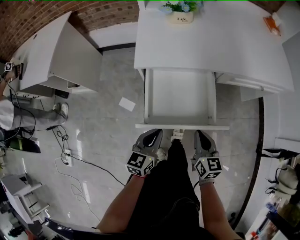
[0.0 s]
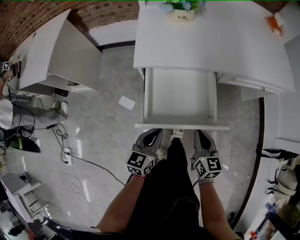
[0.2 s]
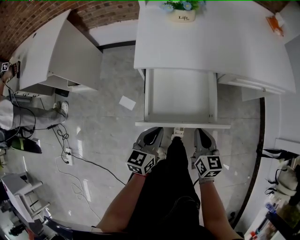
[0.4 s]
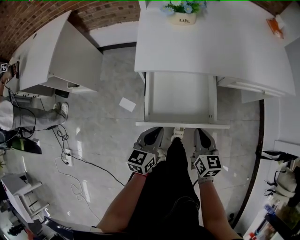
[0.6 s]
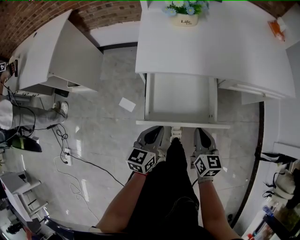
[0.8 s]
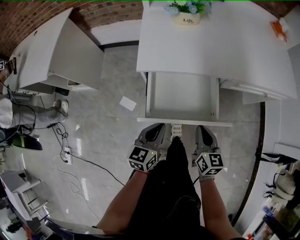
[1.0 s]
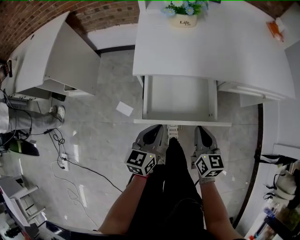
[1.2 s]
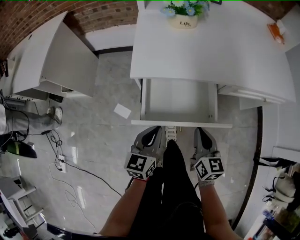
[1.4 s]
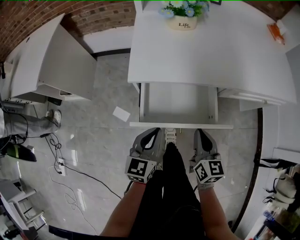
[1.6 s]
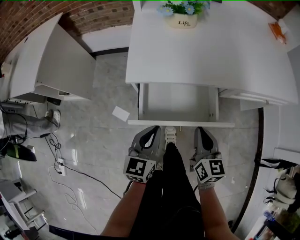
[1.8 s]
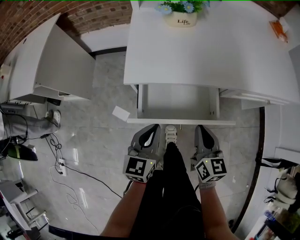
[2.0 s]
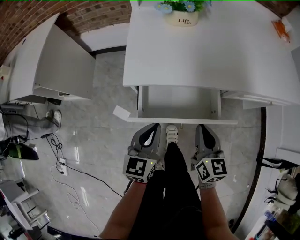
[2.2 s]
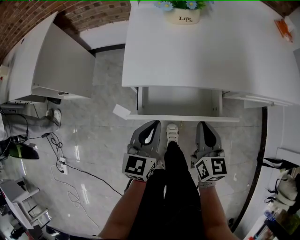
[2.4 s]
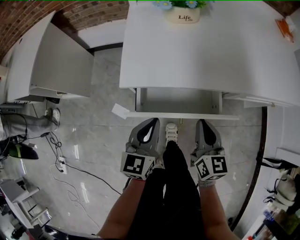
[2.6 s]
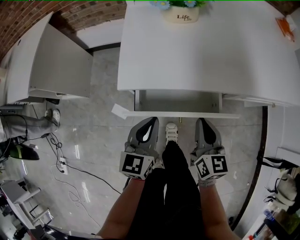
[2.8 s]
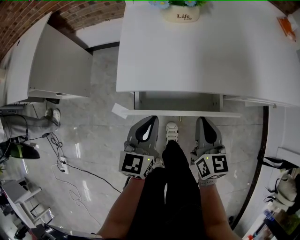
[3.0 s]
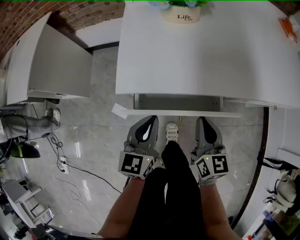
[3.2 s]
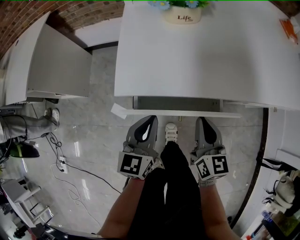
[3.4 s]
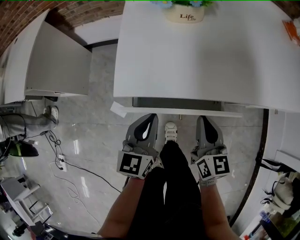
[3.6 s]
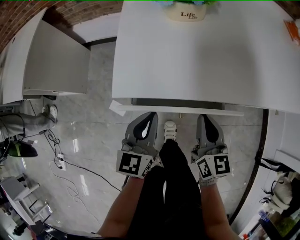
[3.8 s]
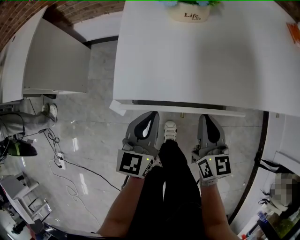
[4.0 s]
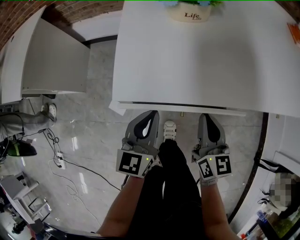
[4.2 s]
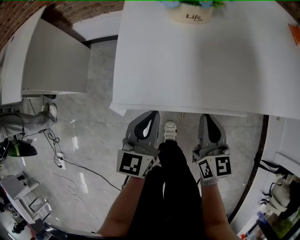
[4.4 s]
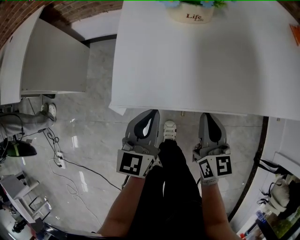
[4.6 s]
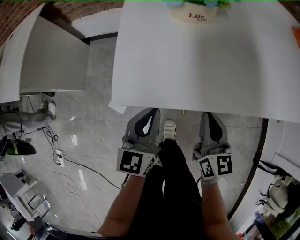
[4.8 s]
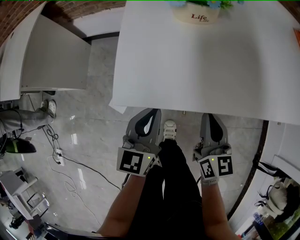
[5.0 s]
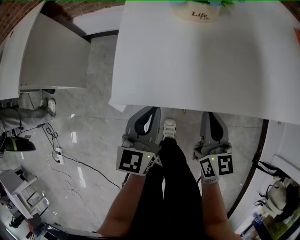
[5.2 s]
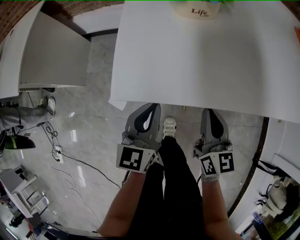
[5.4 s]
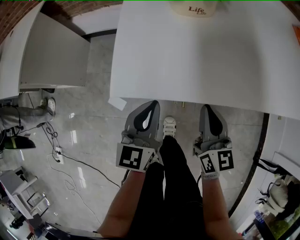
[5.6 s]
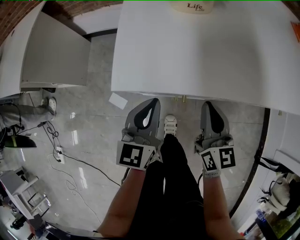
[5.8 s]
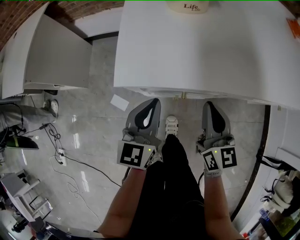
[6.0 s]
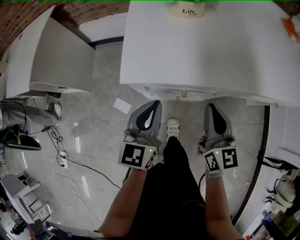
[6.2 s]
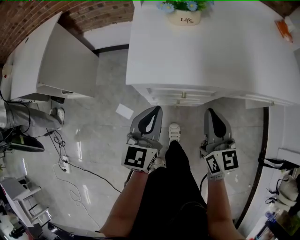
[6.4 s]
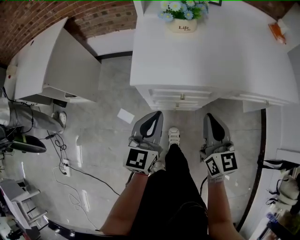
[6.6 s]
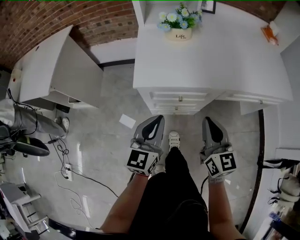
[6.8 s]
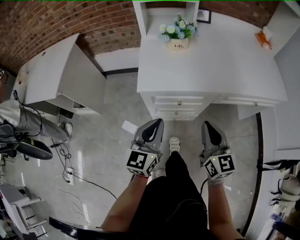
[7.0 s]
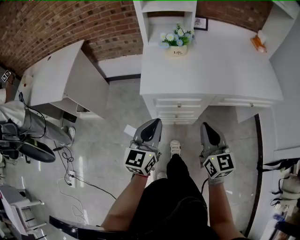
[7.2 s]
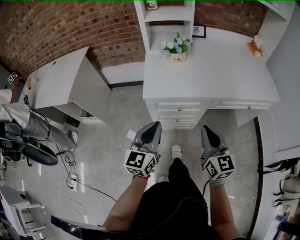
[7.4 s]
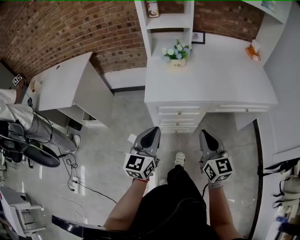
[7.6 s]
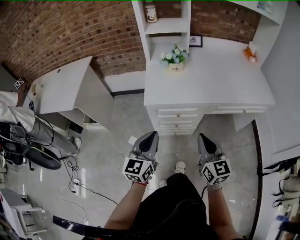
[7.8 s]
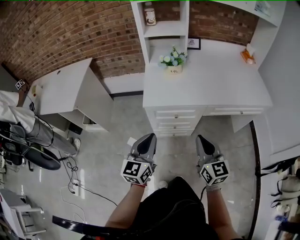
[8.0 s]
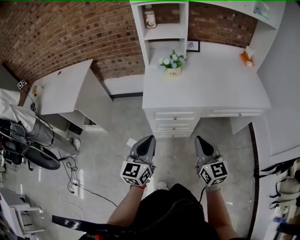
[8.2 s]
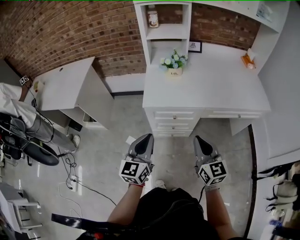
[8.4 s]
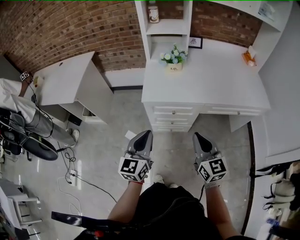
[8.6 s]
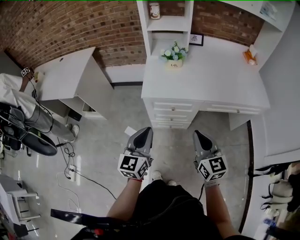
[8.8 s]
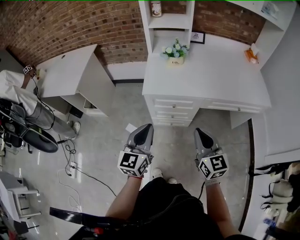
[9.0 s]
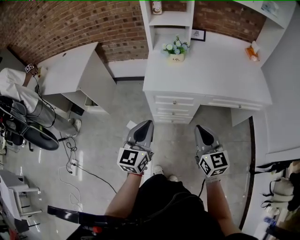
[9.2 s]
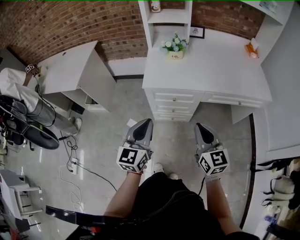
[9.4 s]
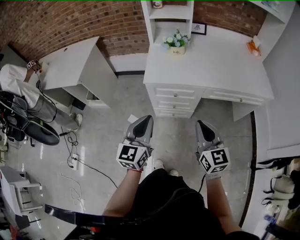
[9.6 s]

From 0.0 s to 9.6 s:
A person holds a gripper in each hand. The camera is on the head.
From 0.0 s to 1.6 s: The two grippers go about 10 cm forward.
From 1.6 s to 3.2 s: The two grippers go some 10 cm forward.
From 3.2 s to 4.8 s: The grippers both shift forward by some 5 cm.
From 4.8 s to 6.4 s: Both grippers travel together backward and upward, approximately 10 cm.
From 6.4 s to 8.0 s: The right gripper travels backward and upward by about 20 cm. Meanwhile the left gripper moves upward and backward, roughly 20 cm.
From 8.0 s to 9.6 s: The right gripper changes place by some 5 cm; the left gripper is displaced backward by about 5 cm.

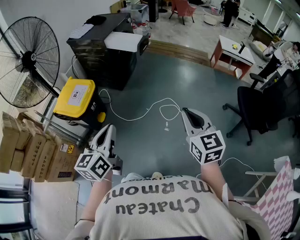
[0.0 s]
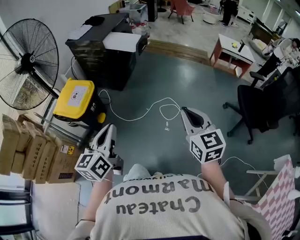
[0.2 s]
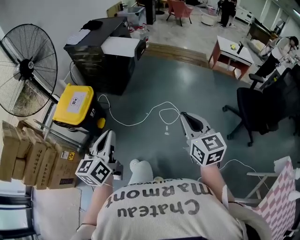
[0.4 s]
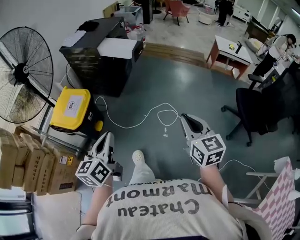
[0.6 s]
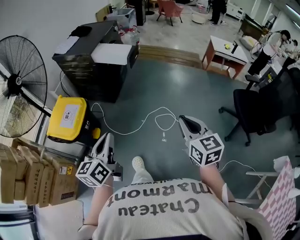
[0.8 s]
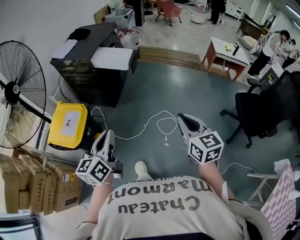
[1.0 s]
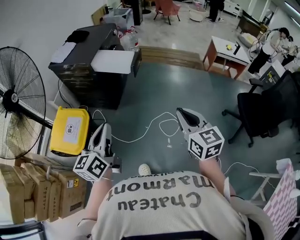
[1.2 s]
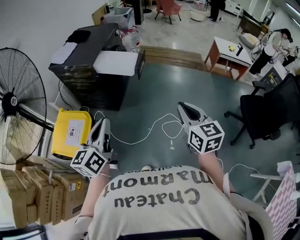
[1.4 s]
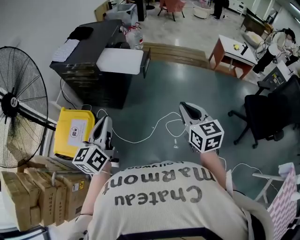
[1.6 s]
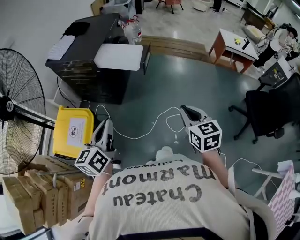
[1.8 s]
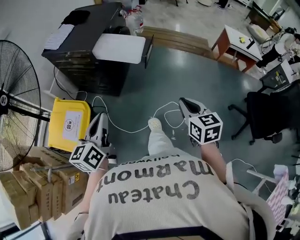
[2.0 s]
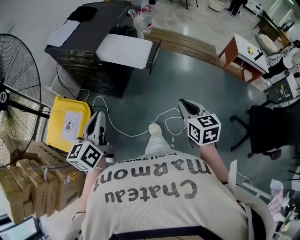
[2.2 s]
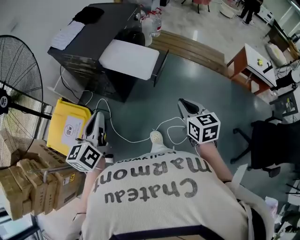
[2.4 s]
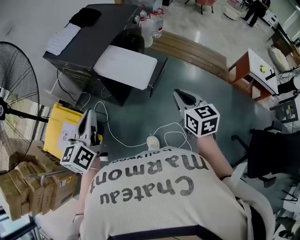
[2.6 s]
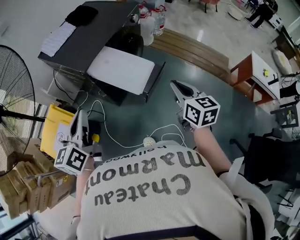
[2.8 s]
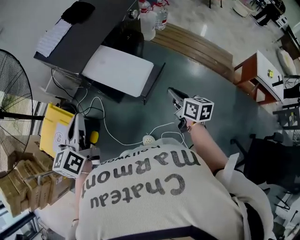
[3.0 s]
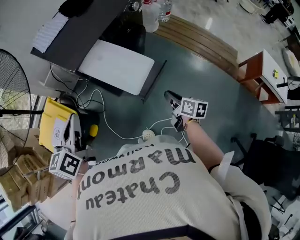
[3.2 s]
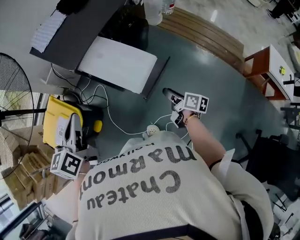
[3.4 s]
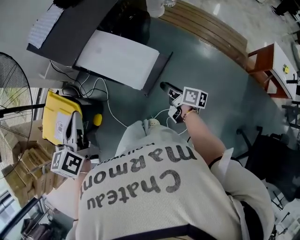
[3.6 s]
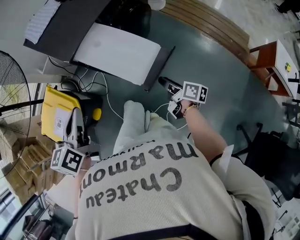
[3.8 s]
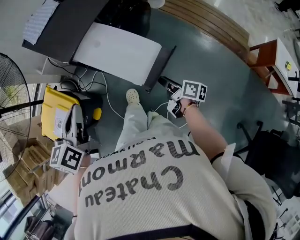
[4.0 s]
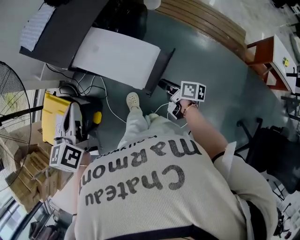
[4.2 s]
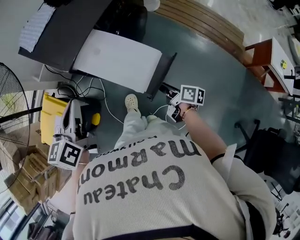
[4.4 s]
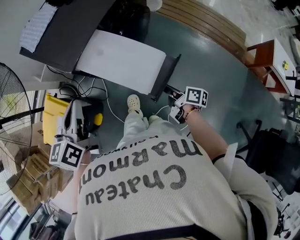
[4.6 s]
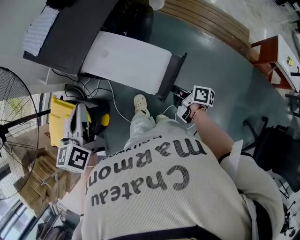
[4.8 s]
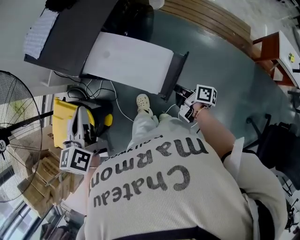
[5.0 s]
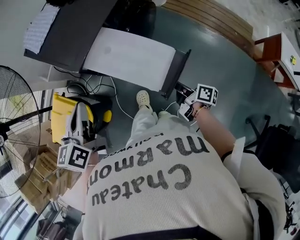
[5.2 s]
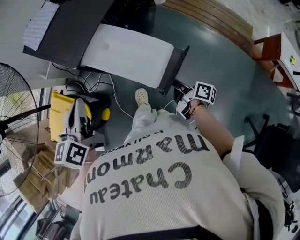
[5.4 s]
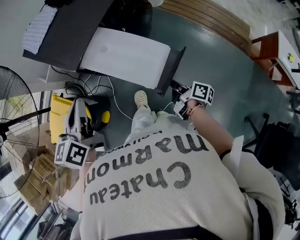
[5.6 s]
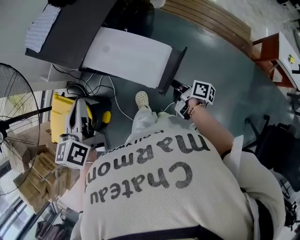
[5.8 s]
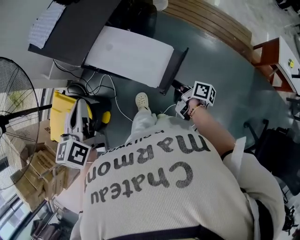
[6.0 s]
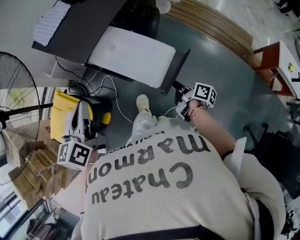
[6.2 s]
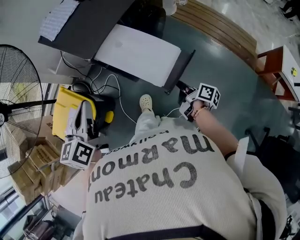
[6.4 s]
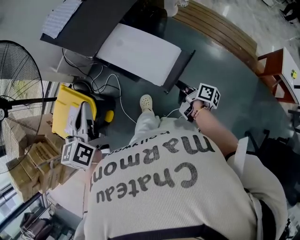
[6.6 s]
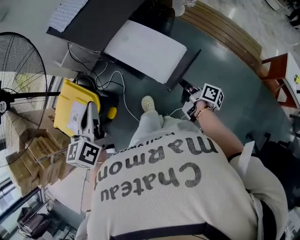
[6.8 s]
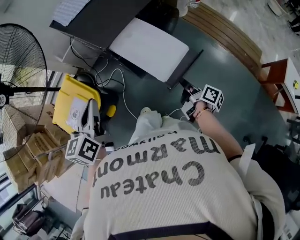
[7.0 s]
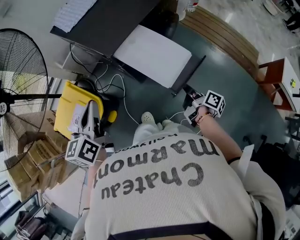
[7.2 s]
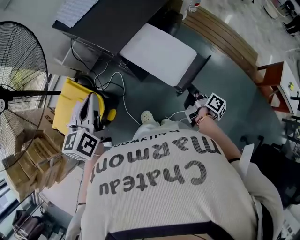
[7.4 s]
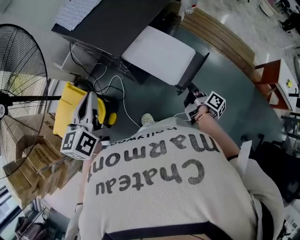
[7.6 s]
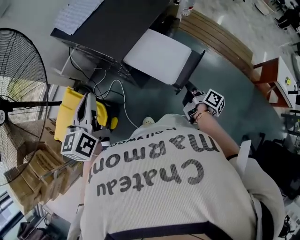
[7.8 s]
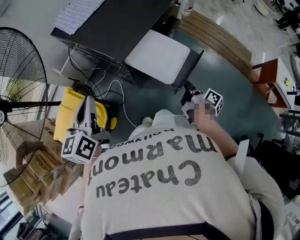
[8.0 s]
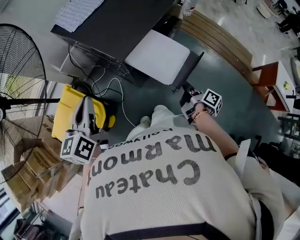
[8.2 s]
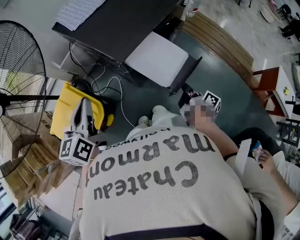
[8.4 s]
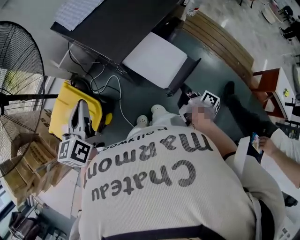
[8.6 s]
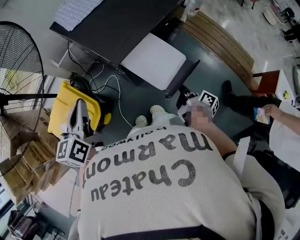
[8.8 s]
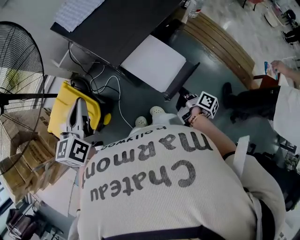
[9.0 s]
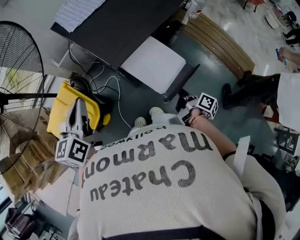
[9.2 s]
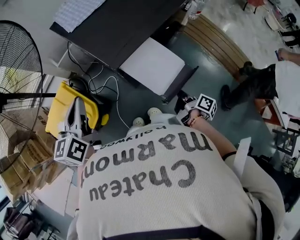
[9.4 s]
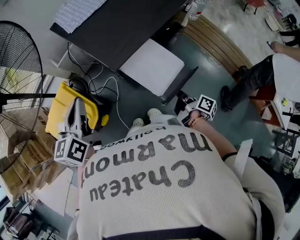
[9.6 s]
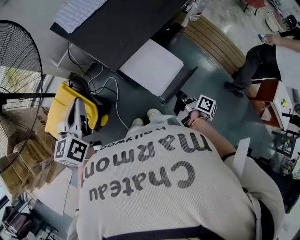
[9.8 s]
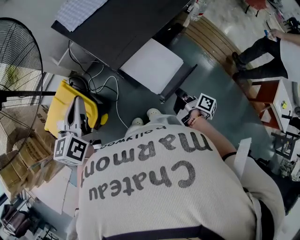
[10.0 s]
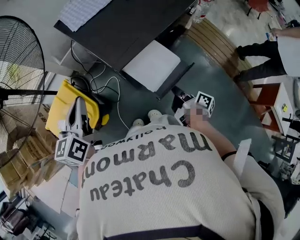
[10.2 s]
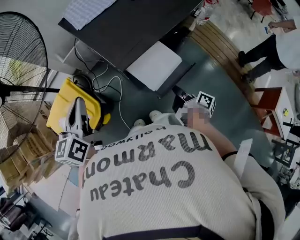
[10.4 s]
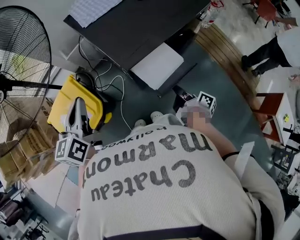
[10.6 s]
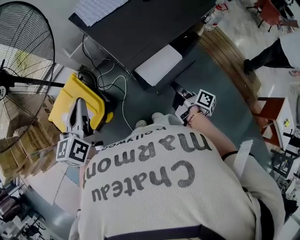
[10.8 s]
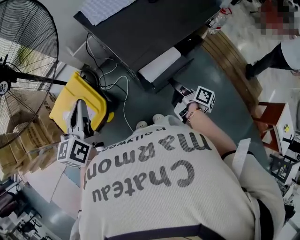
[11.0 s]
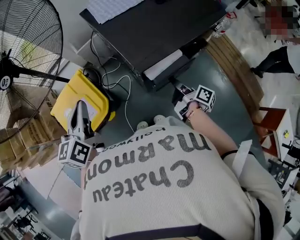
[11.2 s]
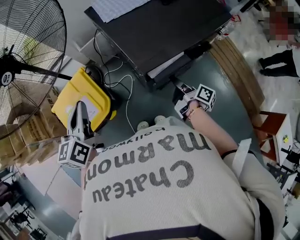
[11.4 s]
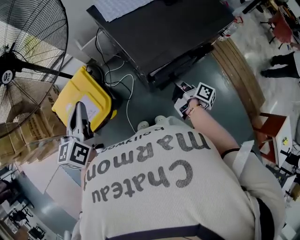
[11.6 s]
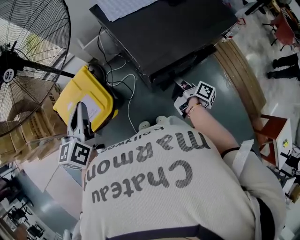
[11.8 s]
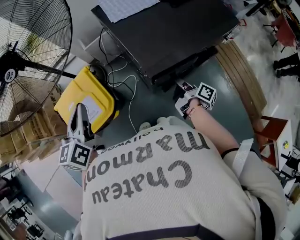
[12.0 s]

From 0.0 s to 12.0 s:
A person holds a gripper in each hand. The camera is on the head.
From 0.0 s to 1.6 s: Both grippers move forward, some 35 cm.
From 1.6 s to 3.0 s: The right gripper moves roughly 50 cm, and changes its angle by some 40 degrees. Meanwhile the left gripper shifts by about 30 cm, and swivels some 30 degrees.
From 3.0 s to 4.4 s: The right gripper shifts some 15 cm downward, turns by approximately 40 degrees, and opens up; the left gripper shifts roughly 10 cm forward.
From 4.4 s to 6.0 s: The right gripper closes up.
From 6.0 s to 7.6 s: The right gripper changes place by roughly 5 cm. The left gripper goes roughly 10 cm to the left.
From 7.6 s to 9.0 s: The right gripper changes place by some 5 cm.
From 9.0 s to 10.4 s: The right gripper ends up some 5 cm from where it was.
From 10.4 s to 12.0 s: The right gripper travels forward and to the left by some 15 cm, while the left gripper moves to the left, some 10 cm.

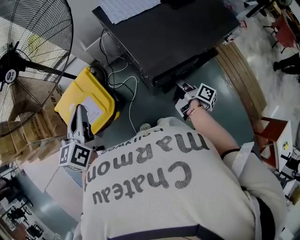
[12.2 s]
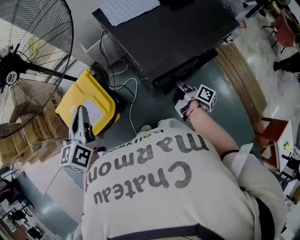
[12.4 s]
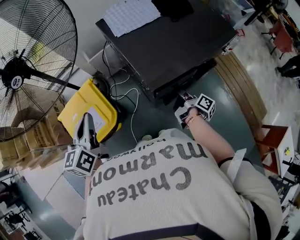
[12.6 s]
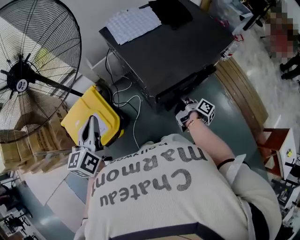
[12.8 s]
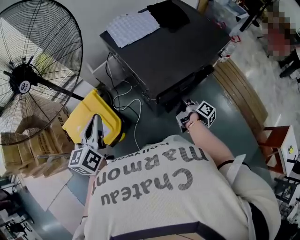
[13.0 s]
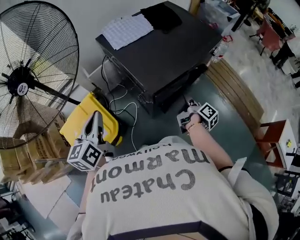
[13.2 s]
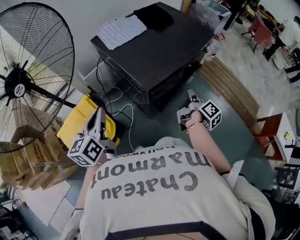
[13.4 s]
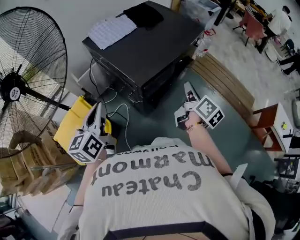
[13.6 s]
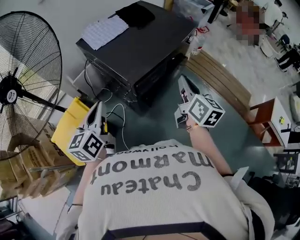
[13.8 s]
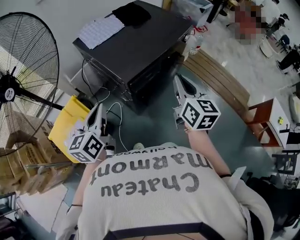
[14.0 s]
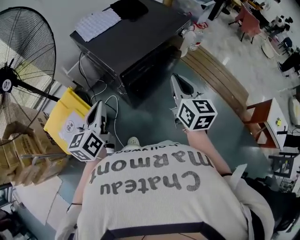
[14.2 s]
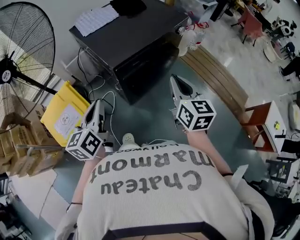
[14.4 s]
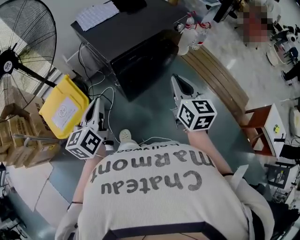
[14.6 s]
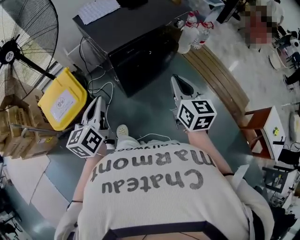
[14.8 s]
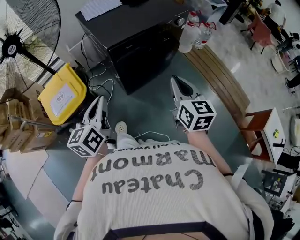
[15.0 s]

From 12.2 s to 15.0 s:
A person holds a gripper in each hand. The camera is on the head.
From 12.2 s to 13.6 s: The right gripper goes roughly 15 cm upward, and swivels roughly 40 degrees. Meanwhile the left gripper shifts by some 10 cm, and turns by roughly 20 degrees.
From 13.6 s to 15.0 s: The right gripper heads backward and to the right, covering some 20 cm, and twists approximately 40 degrees counterclockwise, seen from behind, while the left gripper travels to the right and backward by some 25 cm.
